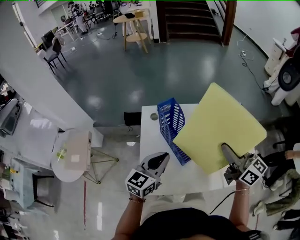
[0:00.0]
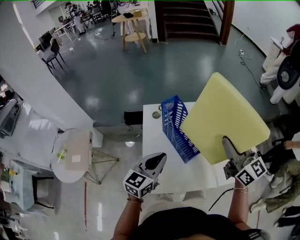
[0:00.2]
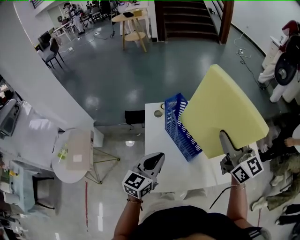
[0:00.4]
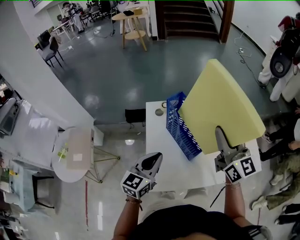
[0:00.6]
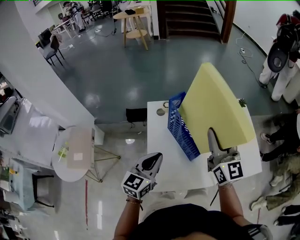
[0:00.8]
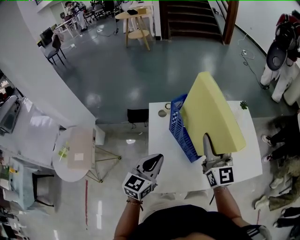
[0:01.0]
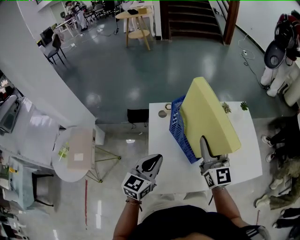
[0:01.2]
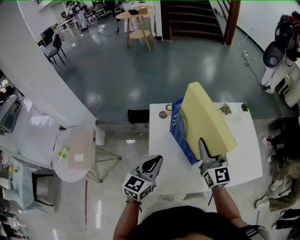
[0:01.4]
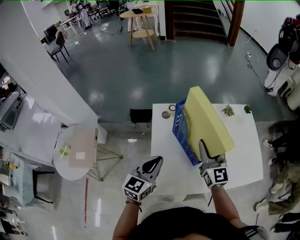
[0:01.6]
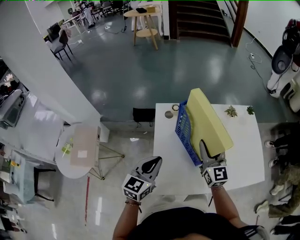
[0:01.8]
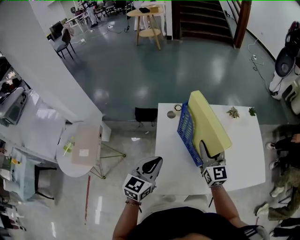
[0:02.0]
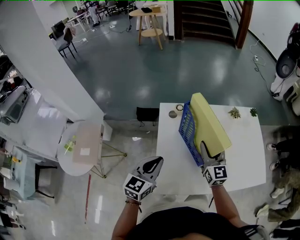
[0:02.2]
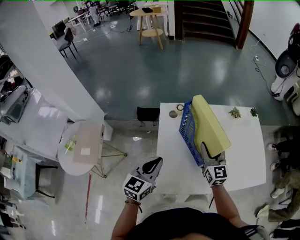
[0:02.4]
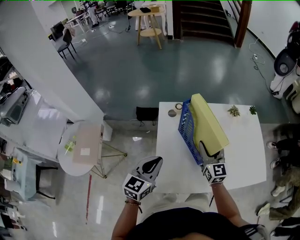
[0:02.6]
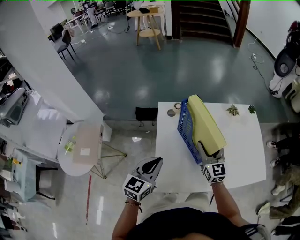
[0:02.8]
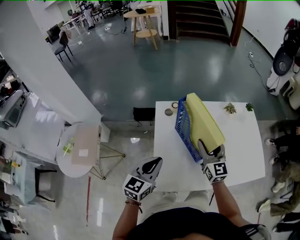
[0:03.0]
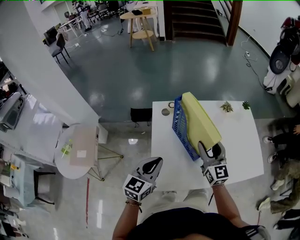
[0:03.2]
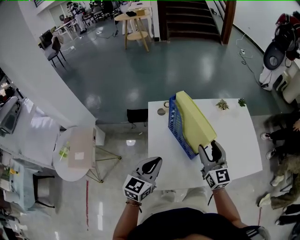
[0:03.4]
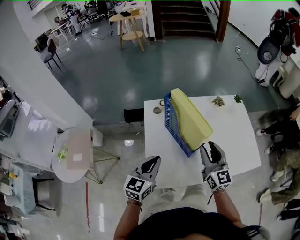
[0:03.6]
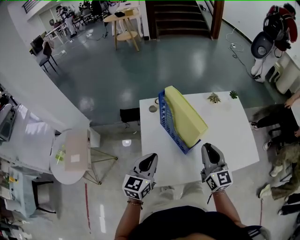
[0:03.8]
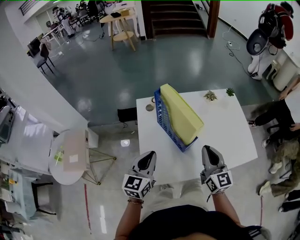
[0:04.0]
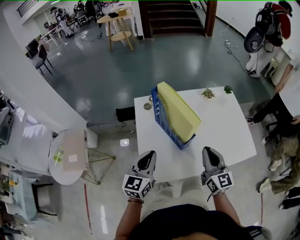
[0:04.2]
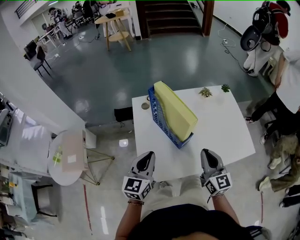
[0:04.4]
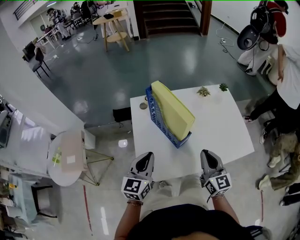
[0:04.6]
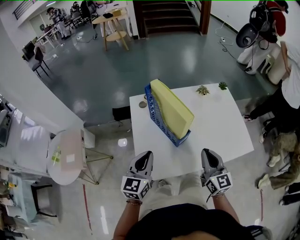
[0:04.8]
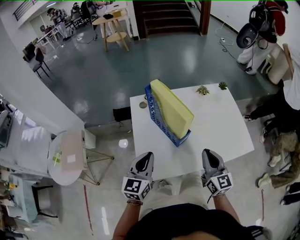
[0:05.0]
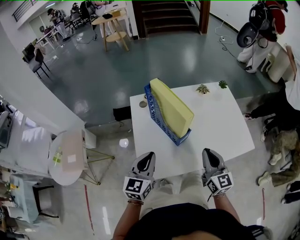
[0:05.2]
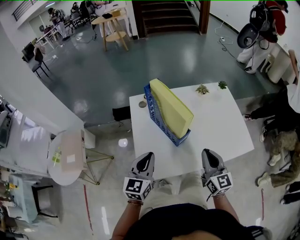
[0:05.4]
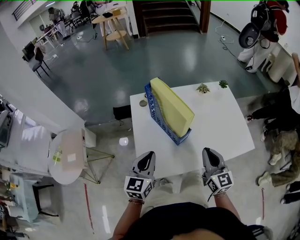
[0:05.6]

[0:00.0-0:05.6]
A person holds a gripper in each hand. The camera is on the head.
0:00.0 to 0:01.4: The left gripper travels to the left by approximately 10 cm, while the right gripper heads to the left and downward, covering approximately 15 cm, and turns by about 30 degrees.
0:01.4 to 0:02.8: The right gripper is displaced downward by some 10 cm.
0:02.8 to 0:04.2: The right gripper is displaced backward and to the right by roughly 15 cm, and closes its fingers; the left gripper moves to the right, approximately 5 cm.
0:04.2 to 0:05.6: The grippers move only a little.

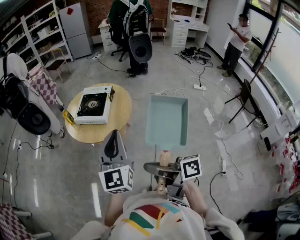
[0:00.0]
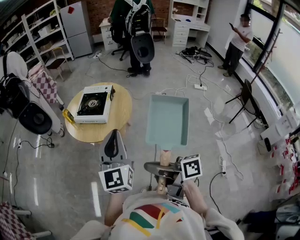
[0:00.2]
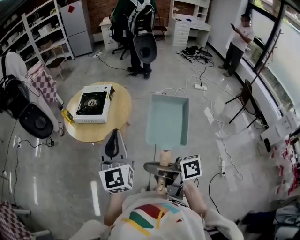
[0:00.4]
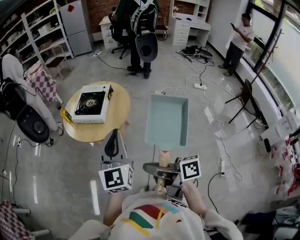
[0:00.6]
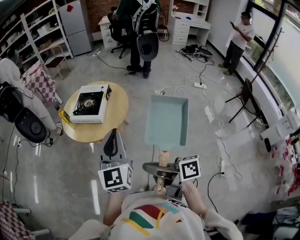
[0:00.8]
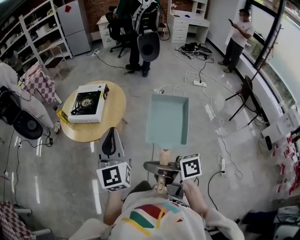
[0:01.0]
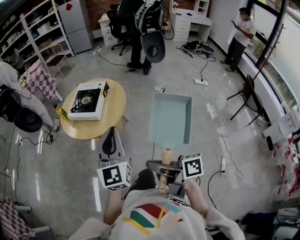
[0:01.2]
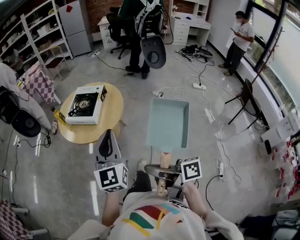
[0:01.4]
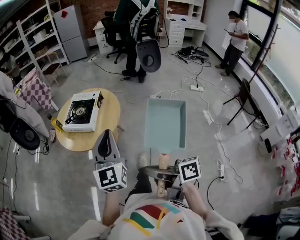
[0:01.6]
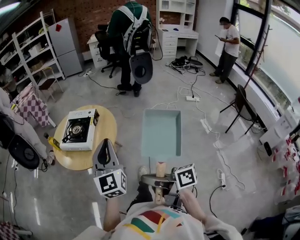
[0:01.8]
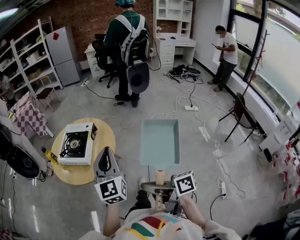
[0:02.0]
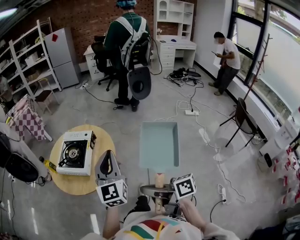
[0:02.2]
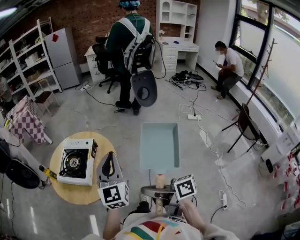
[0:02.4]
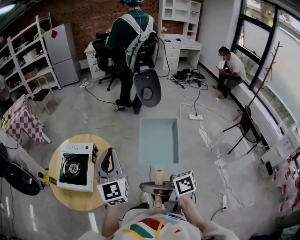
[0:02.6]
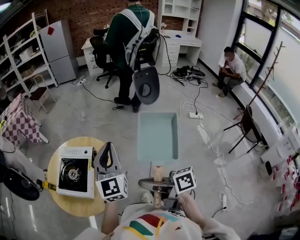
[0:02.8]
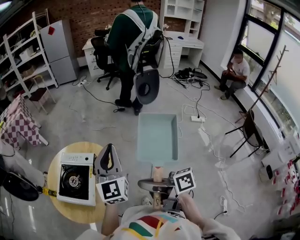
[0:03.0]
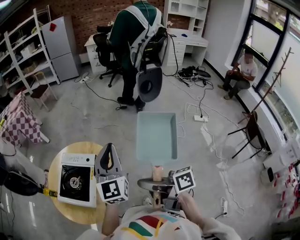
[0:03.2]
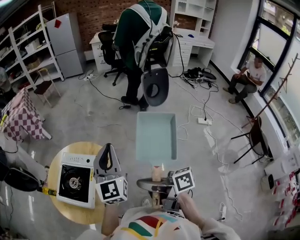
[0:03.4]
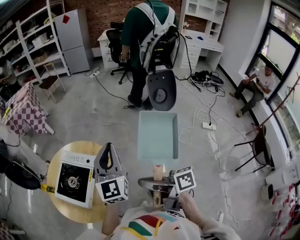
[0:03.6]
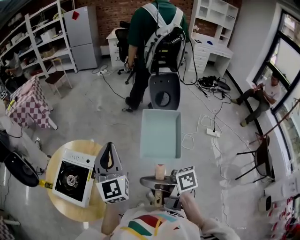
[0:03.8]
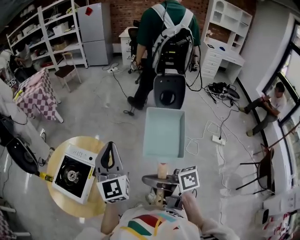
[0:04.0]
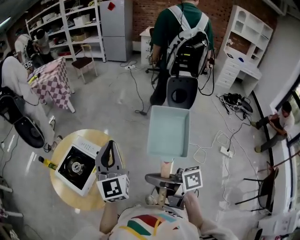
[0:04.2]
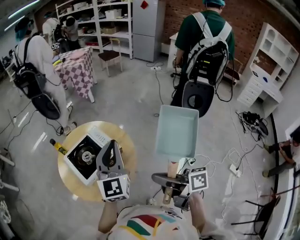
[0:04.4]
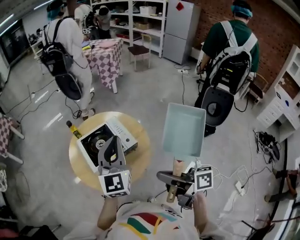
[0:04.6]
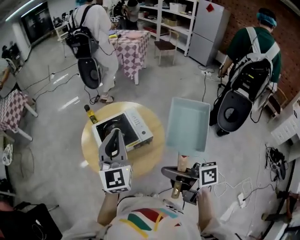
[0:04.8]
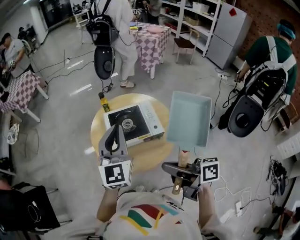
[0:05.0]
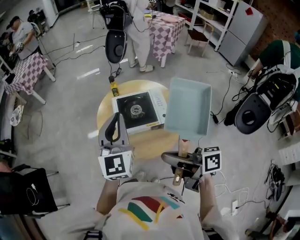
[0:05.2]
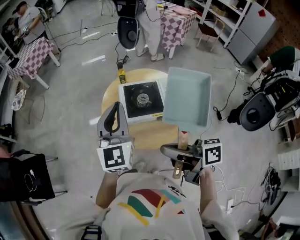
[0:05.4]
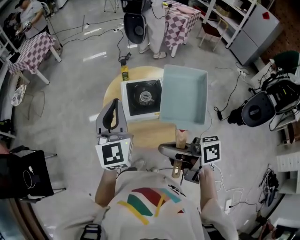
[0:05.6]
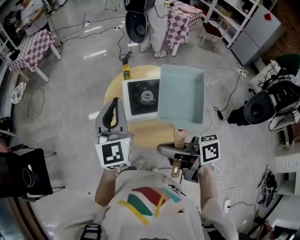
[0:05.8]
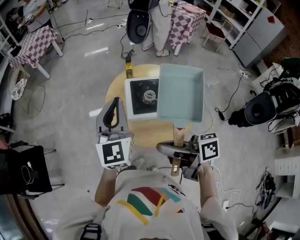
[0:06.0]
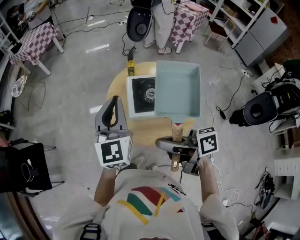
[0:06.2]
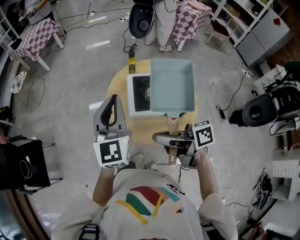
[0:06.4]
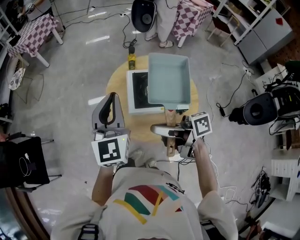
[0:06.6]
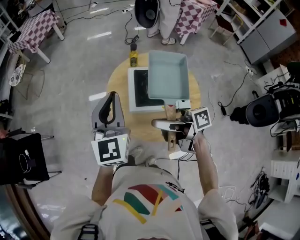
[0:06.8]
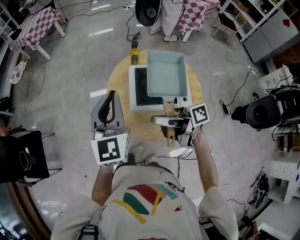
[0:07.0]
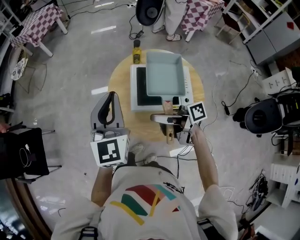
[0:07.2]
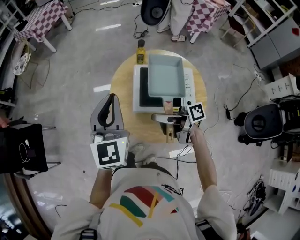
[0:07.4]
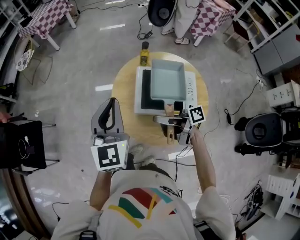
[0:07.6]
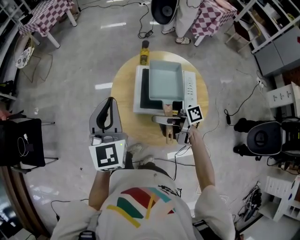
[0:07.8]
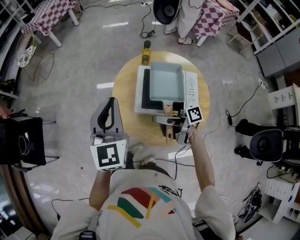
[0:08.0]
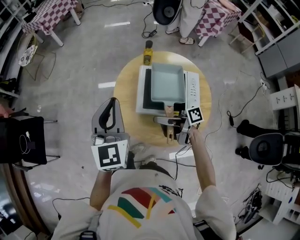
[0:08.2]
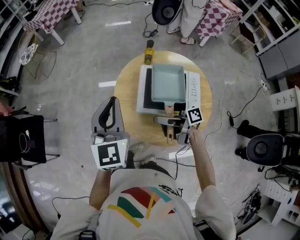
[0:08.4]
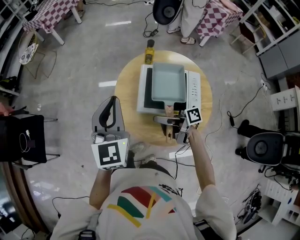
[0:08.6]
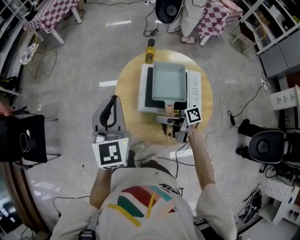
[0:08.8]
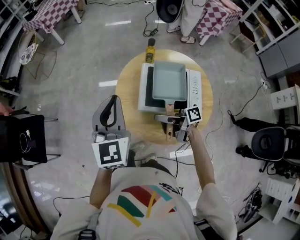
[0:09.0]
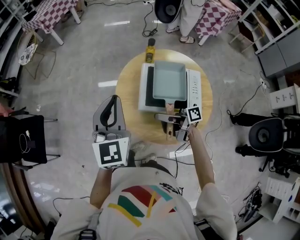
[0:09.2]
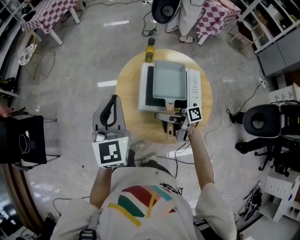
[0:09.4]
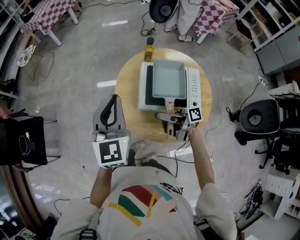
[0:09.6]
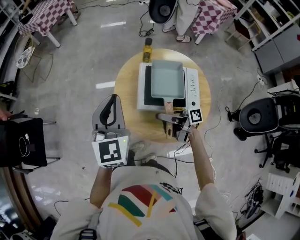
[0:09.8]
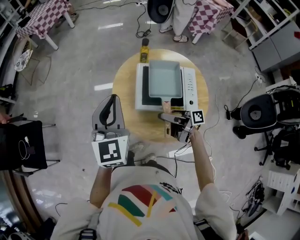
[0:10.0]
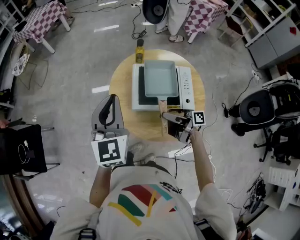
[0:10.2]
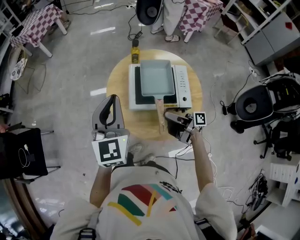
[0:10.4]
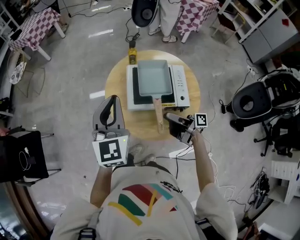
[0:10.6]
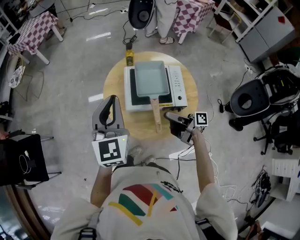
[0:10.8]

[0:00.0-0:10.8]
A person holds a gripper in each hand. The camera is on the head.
0:00.0 to 0:01.6: Both grippers move to the right, about 10 cm.
0:01.6 to 0:03.0: The two grippers travel together, forward and to the right, approximately 40 cm.
0:03.0 to 0:04.6: The left gripper moves about 10 cm, and rotates approximately 50 degrees. The right gripper changes place by about 15 cm, and rotates about 40 degrees.
0:04.6 to 0:06.2: The left gripper ends up some 25 cm from where it was, and swivels some 30 degrees; the right gripper ends up approximately 20 cm from where it was, and rotates about 40 degrees.
0:06.2 to 0:07.8: The right gripper is displaced downward, forward and to the right by some 20 cm, and rotates approximately 20 degrees; the left gripper goes about 5 cm downward.
0:07.8 to 0:09.2: The grippers stay close to where they were, moving slightly.
0:09.2 to 0:10.8: The right gripper travels to the right and backward by approximately 10 cm, turns by about 20 degrees, and opens up; the left gripper shifts by roughly 5 cm.

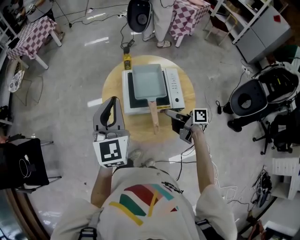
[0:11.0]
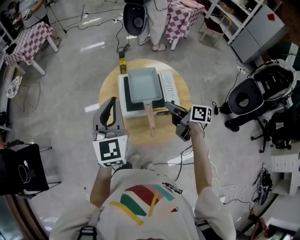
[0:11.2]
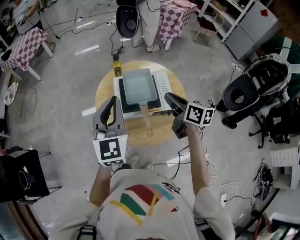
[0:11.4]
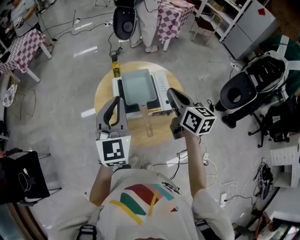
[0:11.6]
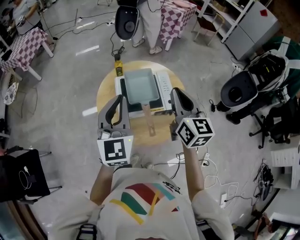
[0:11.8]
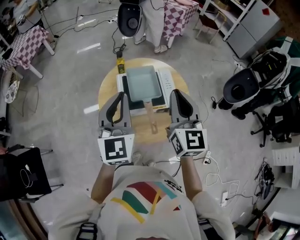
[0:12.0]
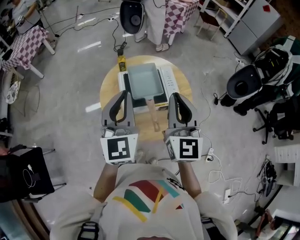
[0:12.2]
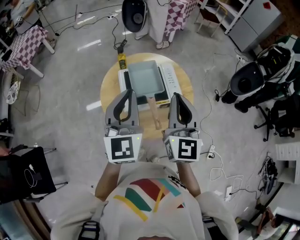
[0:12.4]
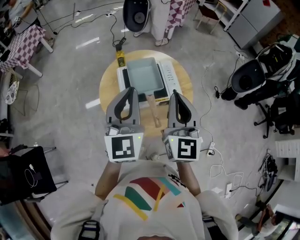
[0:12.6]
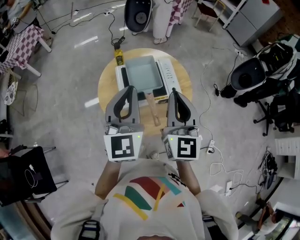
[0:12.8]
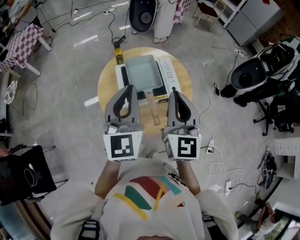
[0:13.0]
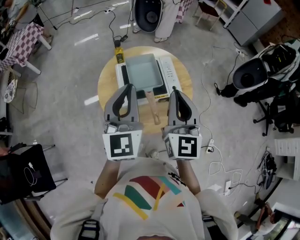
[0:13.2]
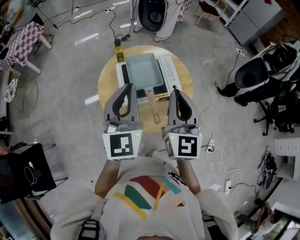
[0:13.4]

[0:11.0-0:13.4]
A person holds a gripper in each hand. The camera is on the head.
0:11.0 to 0:12.2: The right gripper shifts roughly 25 cm upward, rotates about 90 degrees, and closes up, while the left gripper shifts by approximately 5 cm.
0:12.2 to 0:13.4: The grippers move only a little.

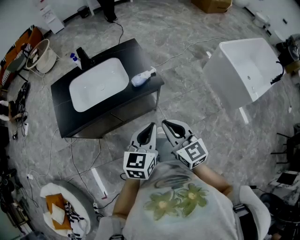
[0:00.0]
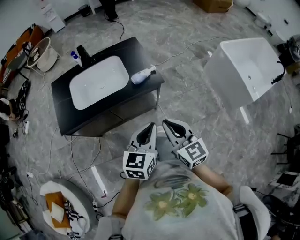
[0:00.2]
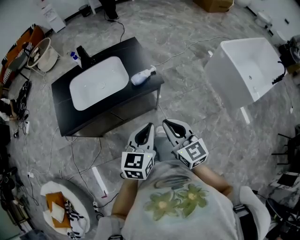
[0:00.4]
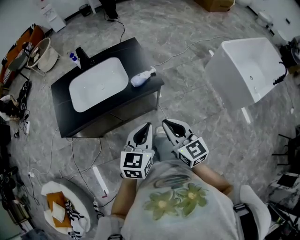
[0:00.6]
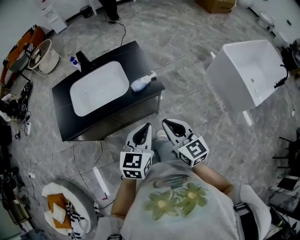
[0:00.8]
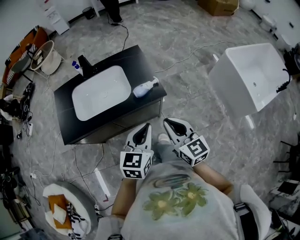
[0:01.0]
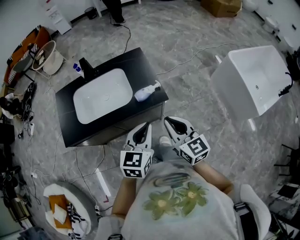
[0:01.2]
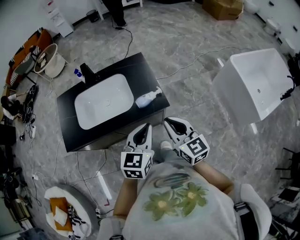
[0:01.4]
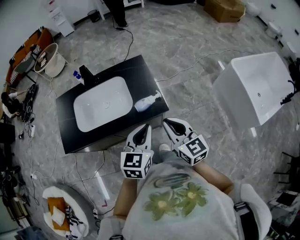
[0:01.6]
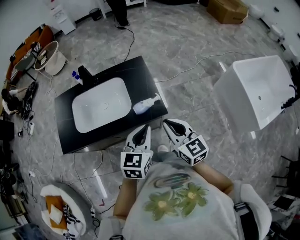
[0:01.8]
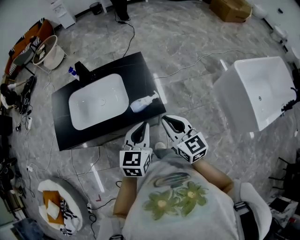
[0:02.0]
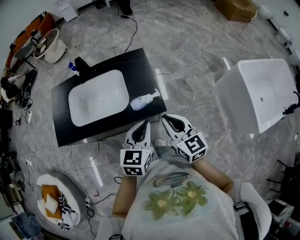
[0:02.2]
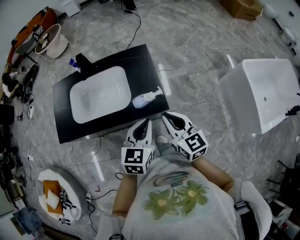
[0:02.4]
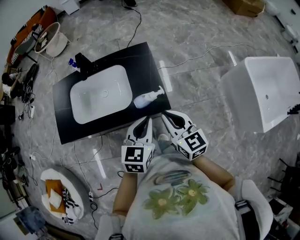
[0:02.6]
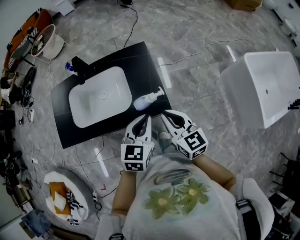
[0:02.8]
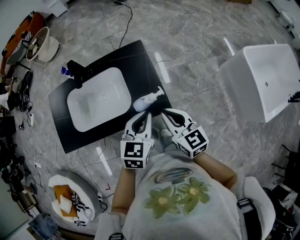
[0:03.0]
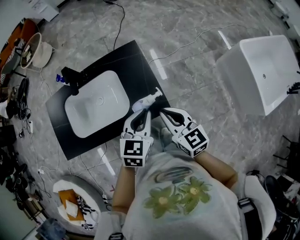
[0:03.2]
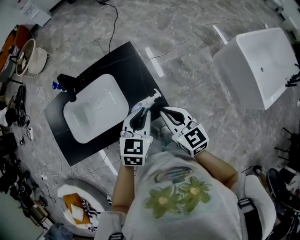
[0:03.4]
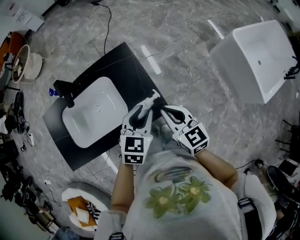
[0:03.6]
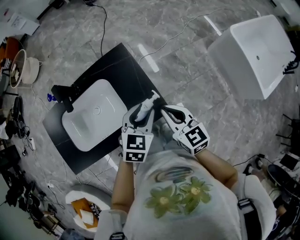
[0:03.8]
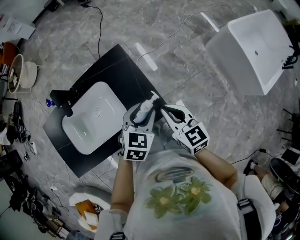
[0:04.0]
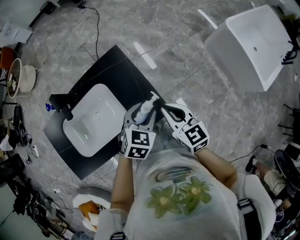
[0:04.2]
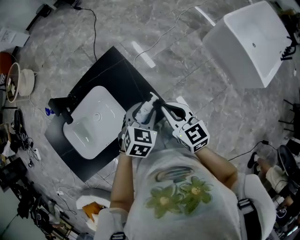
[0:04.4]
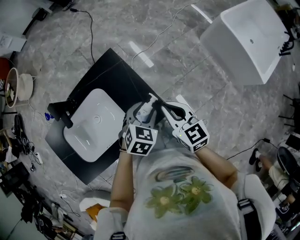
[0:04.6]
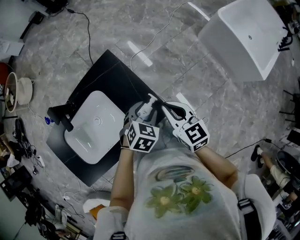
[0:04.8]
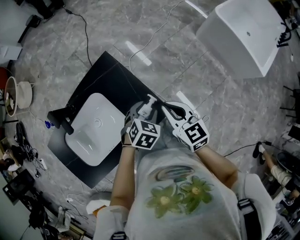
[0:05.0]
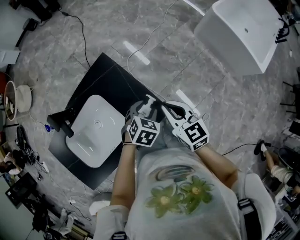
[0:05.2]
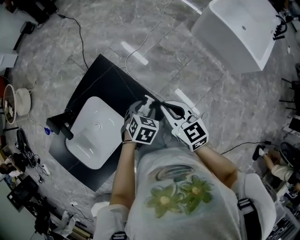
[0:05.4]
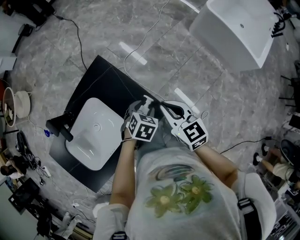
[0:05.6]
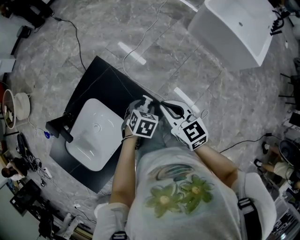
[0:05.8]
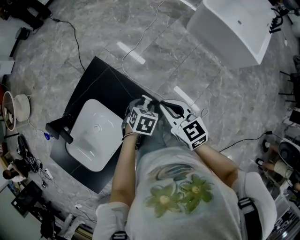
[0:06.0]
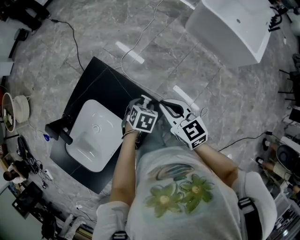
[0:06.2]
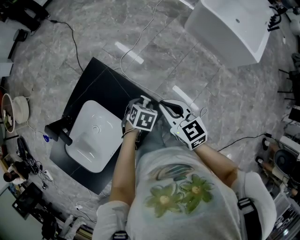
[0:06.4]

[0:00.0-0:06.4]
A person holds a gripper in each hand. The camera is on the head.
0:00.0 to 0:01.6: Both grippers travel together forward, some 20 cm.
0:01.6 to 0:03.2: The left gripper is displaced forward by approximately 20 cm, while the right gripper moves forward and downward, roughly 15 cm.
0:03.2 to 0:04.8: The left gripper heads downward and forward, covering about 15 cm, rotates roughly 40 degrees, and opens, while the right gripper moves forward, roughly 10 cm.
0:04.8 to 0:06.4: The left gripper travels downward by some 10 cm.
